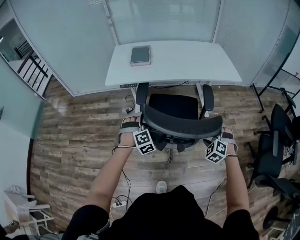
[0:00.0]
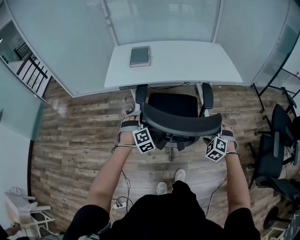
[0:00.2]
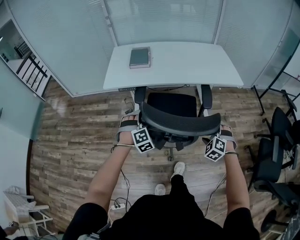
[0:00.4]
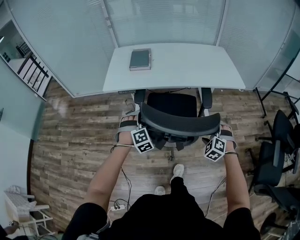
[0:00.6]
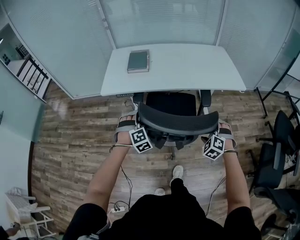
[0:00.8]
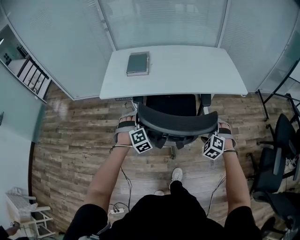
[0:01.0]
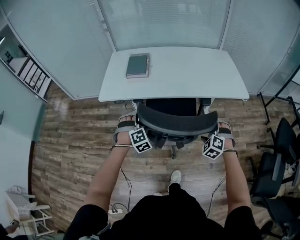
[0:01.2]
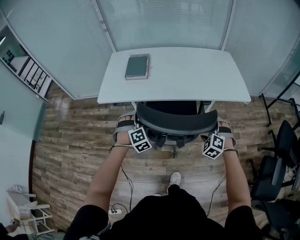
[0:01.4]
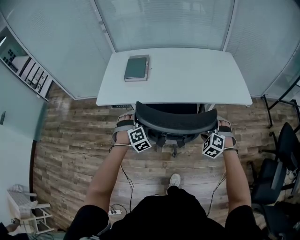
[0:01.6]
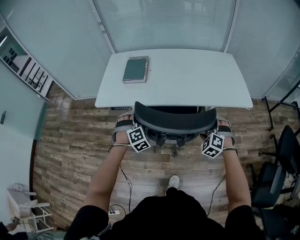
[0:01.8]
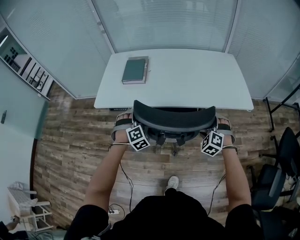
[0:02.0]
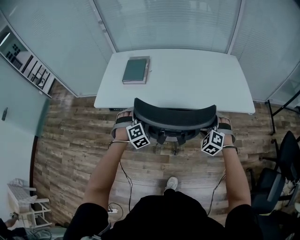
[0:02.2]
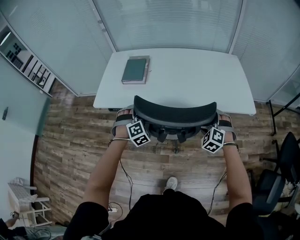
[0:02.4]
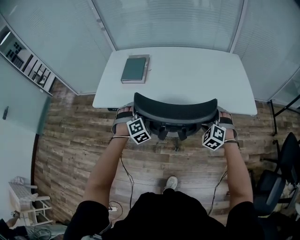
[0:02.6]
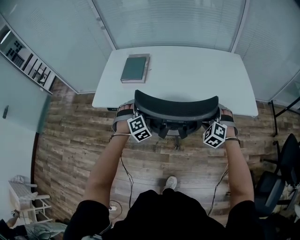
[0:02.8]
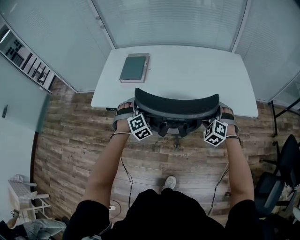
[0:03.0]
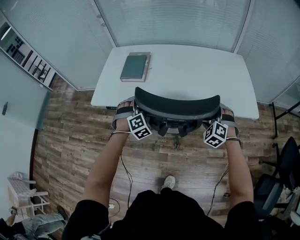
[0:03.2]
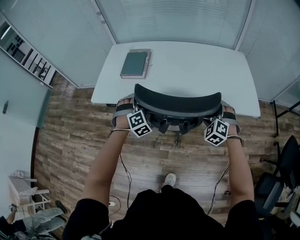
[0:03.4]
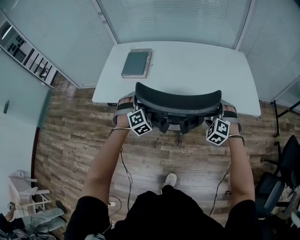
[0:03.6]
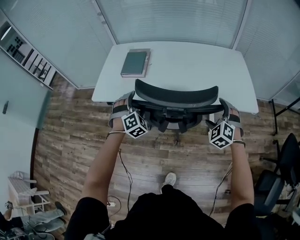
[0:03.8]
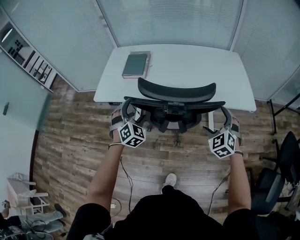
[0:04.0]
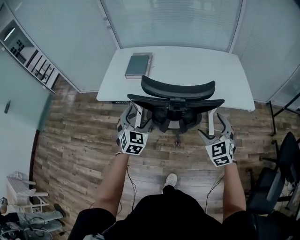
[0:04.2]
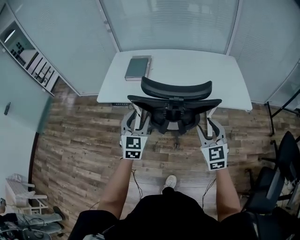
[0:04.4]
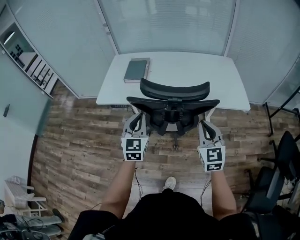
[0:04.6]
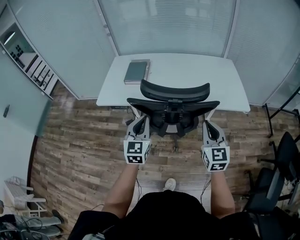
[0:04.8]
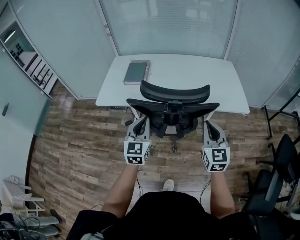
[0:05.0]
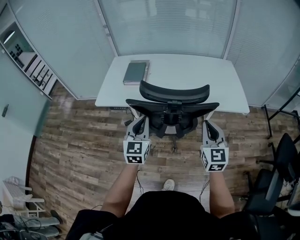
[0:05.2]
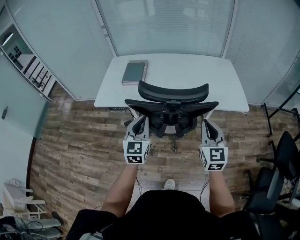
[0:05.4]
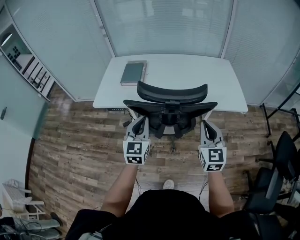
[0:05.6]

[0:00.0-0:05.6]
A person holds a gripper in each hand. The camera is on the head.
0:00.0 to 0:01.4: The grippers both shift forward by some 20 cm.
0:01.4 to 0:02.8: The two grippers go approximately 15 cm forward.
0:02.8 to 0:04.2: The two grippers go about 15 cm backward and upward. The left gripper swivels some 50 degrees. Meanwhile the right gripper rotates approximately 40 degrees.
0:04.2 to 0:05.6: The right gripper moves upward, about 5 cm, turns by roughly 30 degrees, and closes. Meanwhile the left gripper shifts by approximately 5 cm, changes its angle by some 30 degrees, and closes.

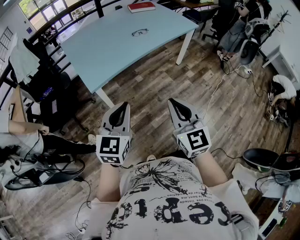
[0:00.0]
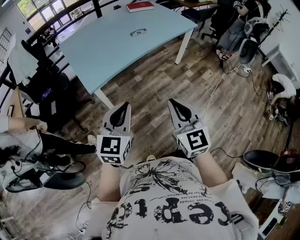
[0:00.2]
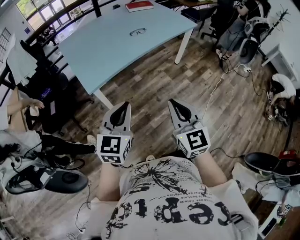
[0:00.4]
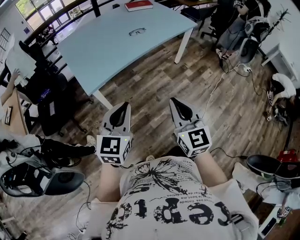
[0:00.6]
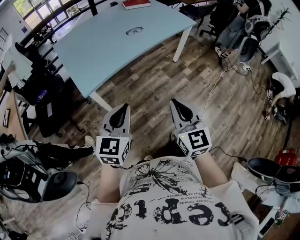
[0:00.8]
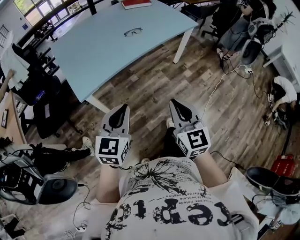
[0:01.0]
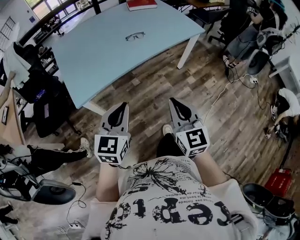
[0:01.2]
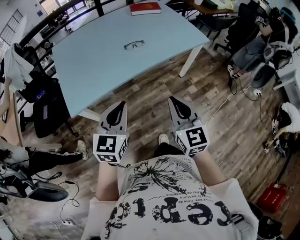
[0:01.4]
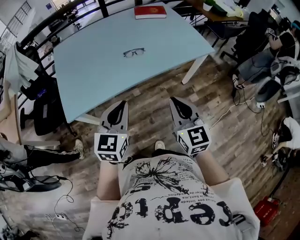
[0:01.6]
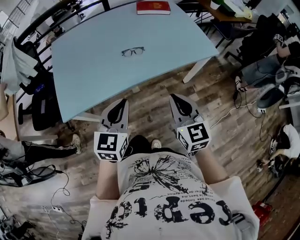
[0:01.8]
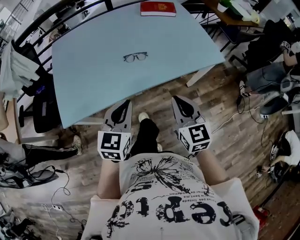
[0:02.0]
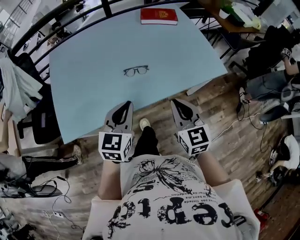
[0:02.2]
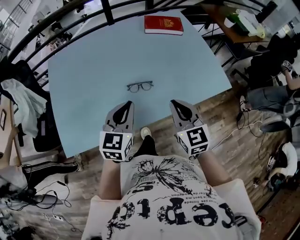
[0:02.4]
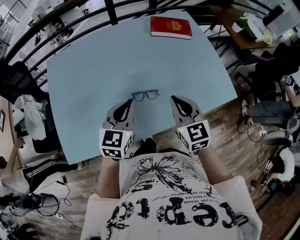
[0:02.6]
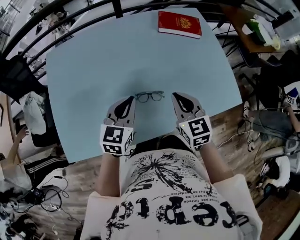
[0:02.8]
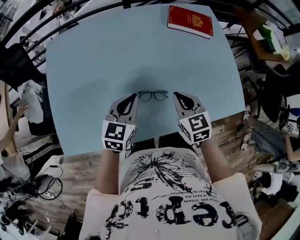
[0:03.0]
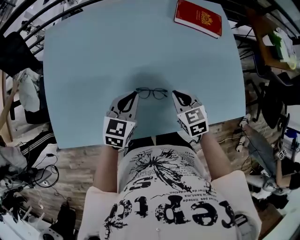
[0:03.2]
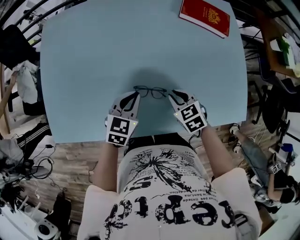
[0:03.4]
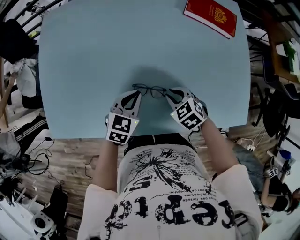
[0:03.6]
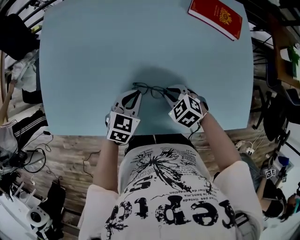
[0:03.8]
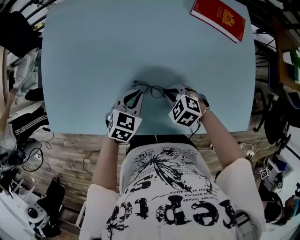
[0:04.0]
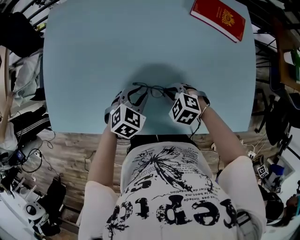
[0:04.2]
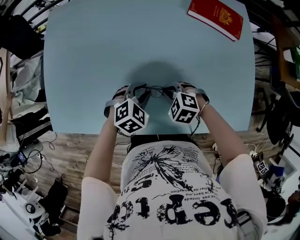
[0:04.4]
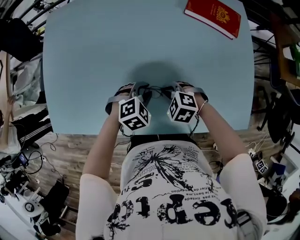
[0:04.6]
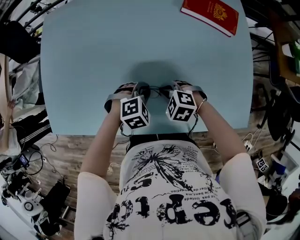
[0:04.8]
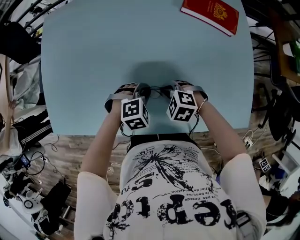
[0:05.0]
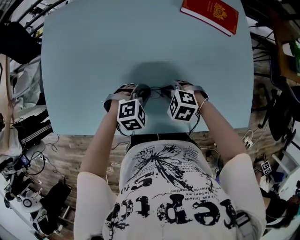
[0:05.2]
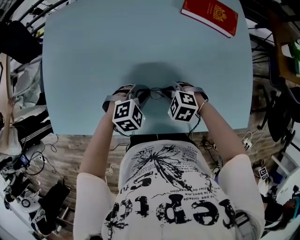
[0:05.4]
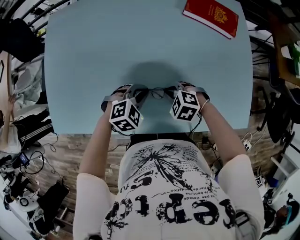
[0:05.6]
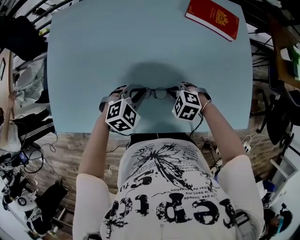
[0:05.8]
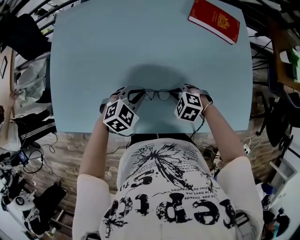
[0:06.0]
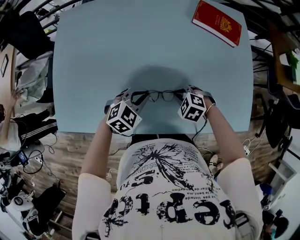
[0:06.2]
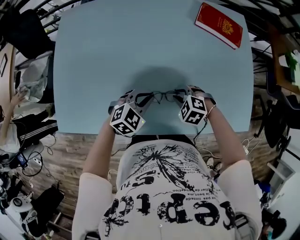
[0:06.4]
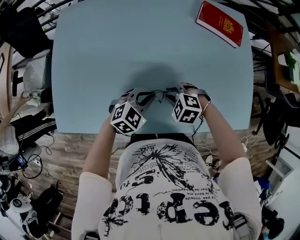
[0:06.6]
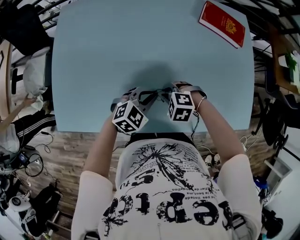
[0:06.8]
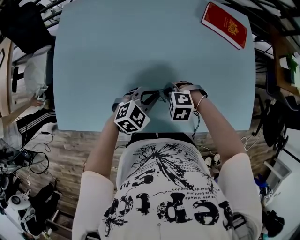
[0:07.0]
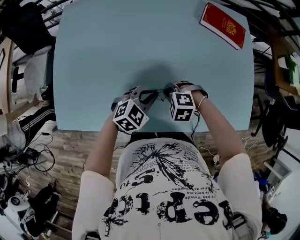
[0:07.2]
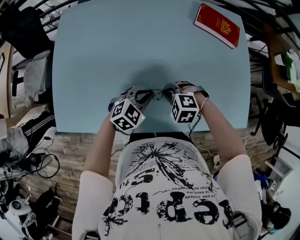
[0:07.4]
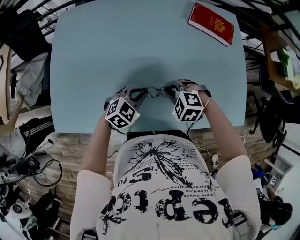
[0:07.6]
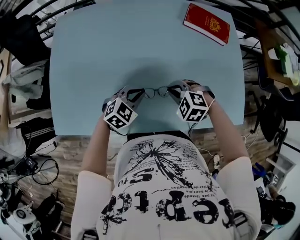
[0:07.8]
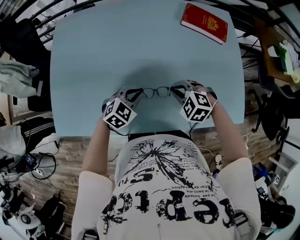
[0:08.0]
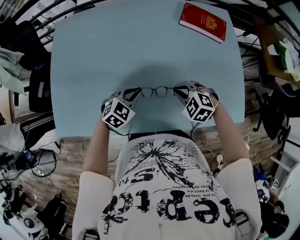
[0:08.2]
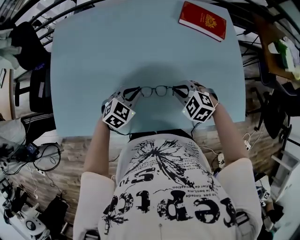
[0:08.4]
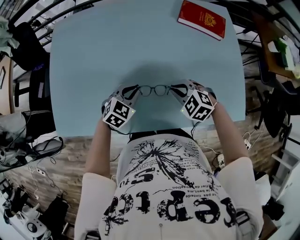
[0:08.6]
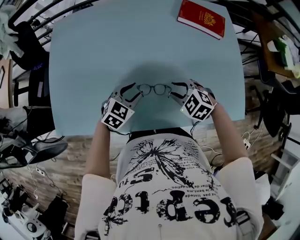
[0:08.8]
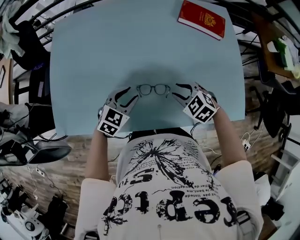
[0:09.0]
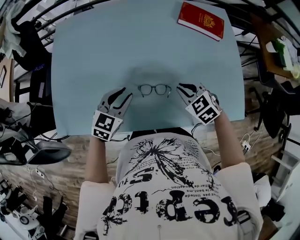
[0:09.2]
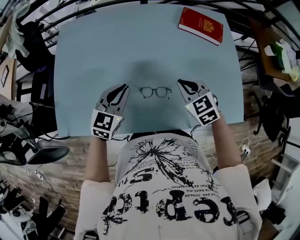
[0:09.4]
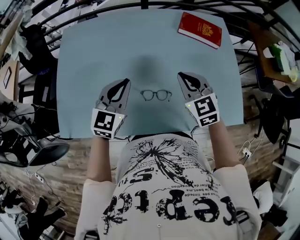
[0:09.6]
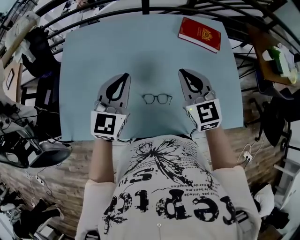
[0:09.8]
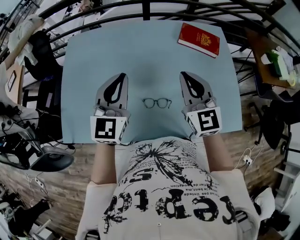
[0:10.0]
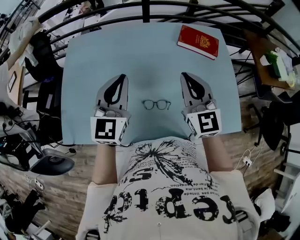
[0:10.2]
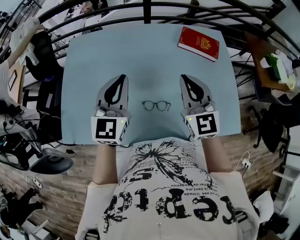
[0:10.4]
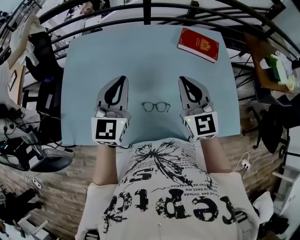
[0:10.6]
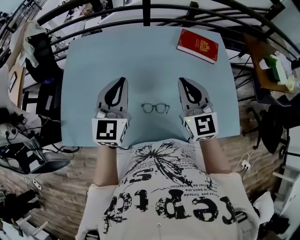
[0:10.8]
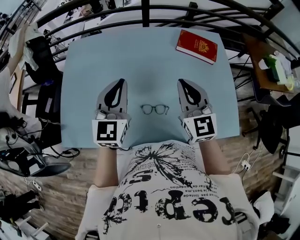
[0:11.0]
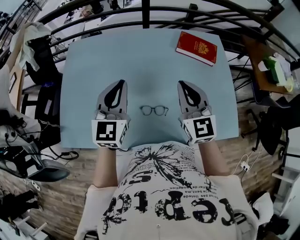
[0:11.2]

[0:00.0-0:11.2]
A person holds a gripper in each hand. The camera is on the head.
0:00.0 to 0:01.6: The two grippers travel together, forward and to the right, roughly 50 cm.
0:01.6 to 0:03.2: The two grippers travel together, forward, some 50 cm. The right gripper tips its fingers downward by about 30 degrees; the left gripper swivels about 20 degrees.
0:03.2 to 0:04.8: The right gripper goes about 10 cm downward, and swivels roughly 60 degrees. Meanwhile the left gripper shifts roughly 15 cm downward and to the right, and tips its fingers downward by roughly 40 degrees.
0:04.8 to 0:06.4: The left gripper ends up approximately 10 cm from where it was, and swivels approximately 30 degrees.
0:06.4 to 0:08.0: The right gripper moves upward, roughly 5 cm.
0:08.0 to 0:09.6: Both grippers move upward, roughly 15 cm. The left gripper swivels about 30 degrees, and opens, then closes once more; the right gripper angles its fingers upward, by about 30 degrees, and opens, then closes once more.
0:09.6 to 0:11.2: Both grippers travel together upward, approximately 10 cm. The right gripper changes its angle by some 20 degrees.

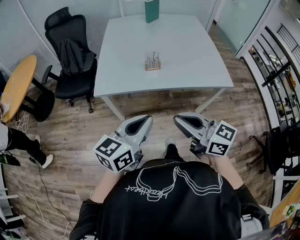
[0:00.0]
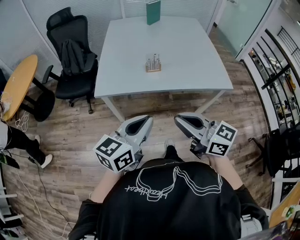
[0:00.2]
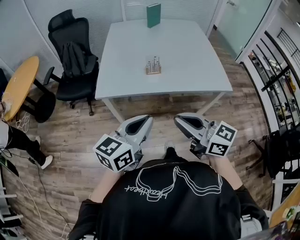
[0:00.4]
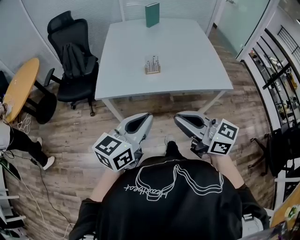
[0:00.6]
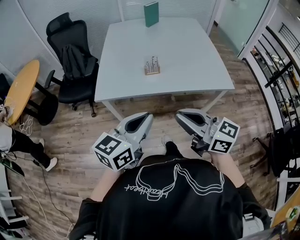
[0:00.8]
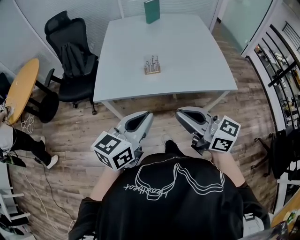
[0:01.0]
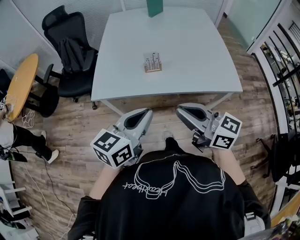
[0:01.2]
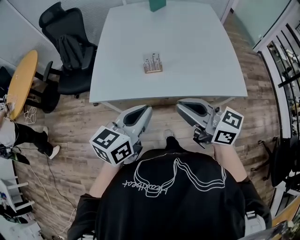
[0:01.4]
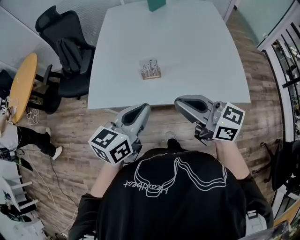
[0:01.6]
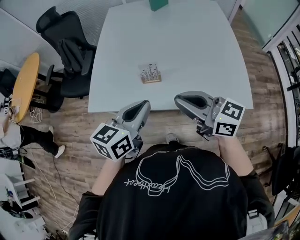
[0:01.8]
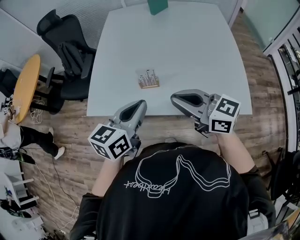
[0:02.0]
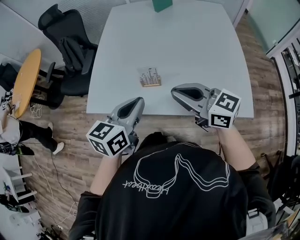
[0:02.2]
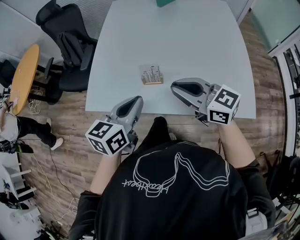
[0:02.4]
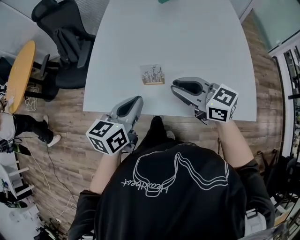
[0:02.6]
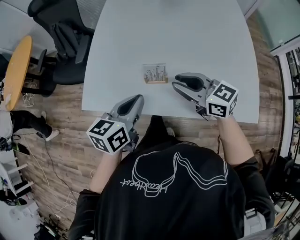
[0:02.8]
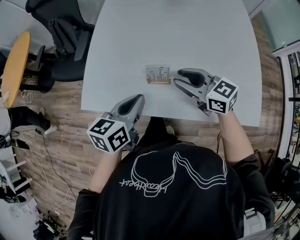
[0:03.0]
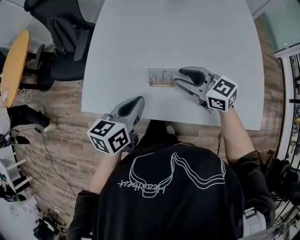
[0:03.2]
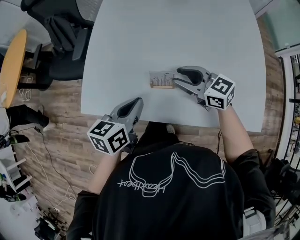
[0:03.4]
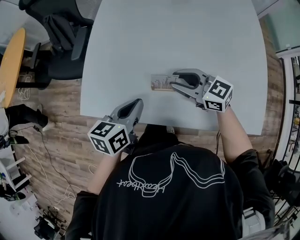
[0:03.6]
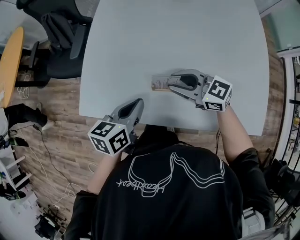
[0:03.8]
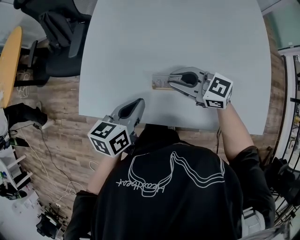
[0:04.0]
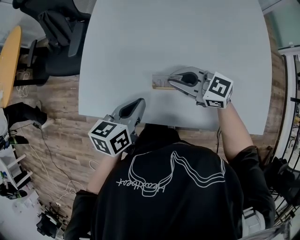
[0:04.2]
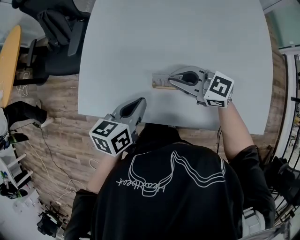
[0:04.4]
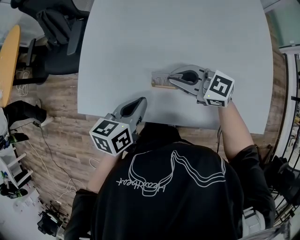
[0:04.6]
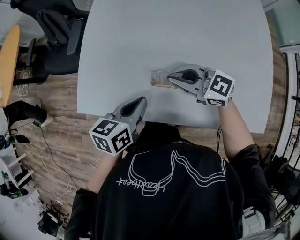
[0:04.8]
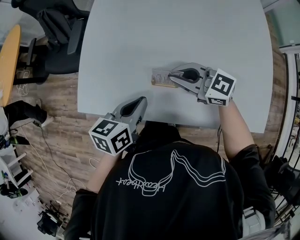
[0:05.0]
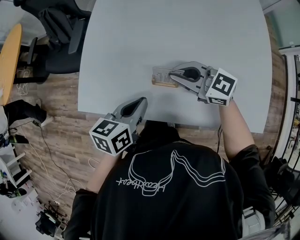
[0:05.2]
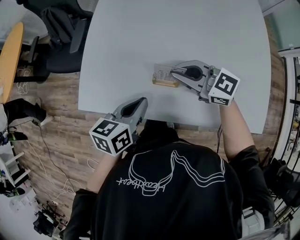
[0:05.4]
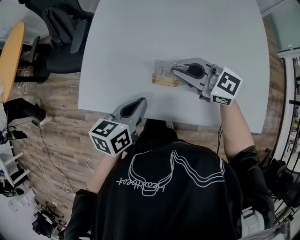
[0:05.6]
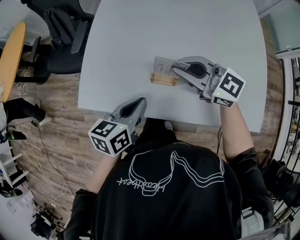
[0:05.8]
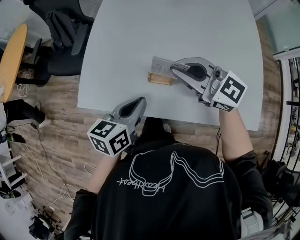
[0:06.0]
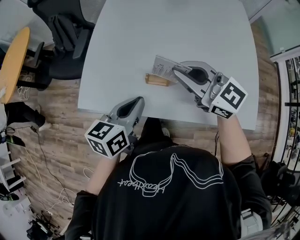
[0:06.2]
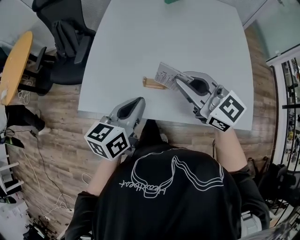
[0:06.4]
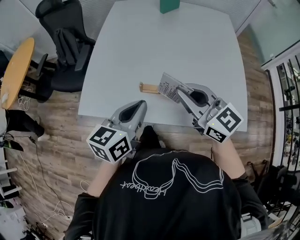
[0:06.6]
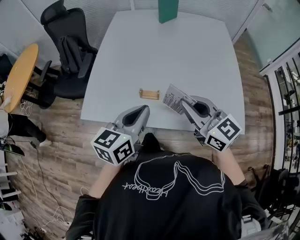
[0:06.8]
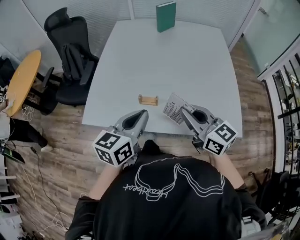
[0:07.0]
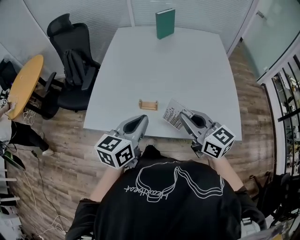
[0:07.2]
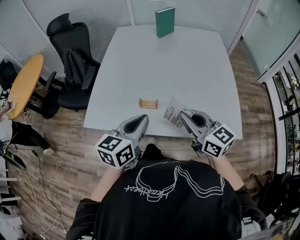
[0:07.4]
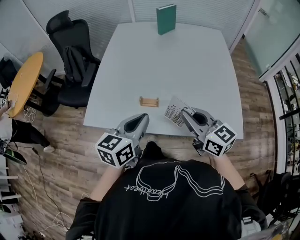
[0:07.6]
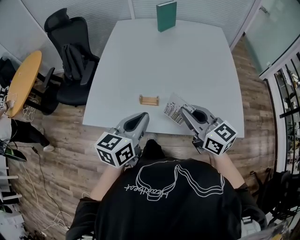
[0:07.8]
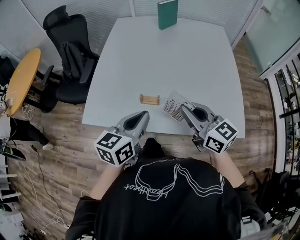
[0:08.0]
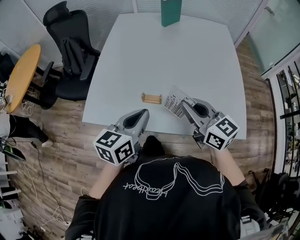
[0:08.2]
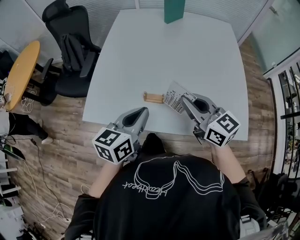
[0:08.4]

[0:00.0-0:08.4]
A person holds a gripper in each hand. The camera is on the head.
0:00.0 to 0:01.4: The two grippers go about 15 cm forward and to the right.
0:01.4 to 0:02.8: The two grippers go some 25 cm forward and downward. The right gripper opens.
0:02.8 to 0:04.2: The left gripper travels downward and forward by roughly 10 cm; the right gripper is displaced forward and downward by roughly 10 cm.
0:04.2 to 0:05.6: The right gripper shifts roughly 5 cm upward.
0:05.6 to 0:07.0: The left gripper travels upward and backward by about 15 cm, and swivels approximately 20 degrees. Meanwhile the right gripper moves backward, upward and to the right, about 20 cm, and changes its angle by roughly 30 degrees.
0:07.0 to 0:08.4: The right gripper goes roughly 5 cm forward.
